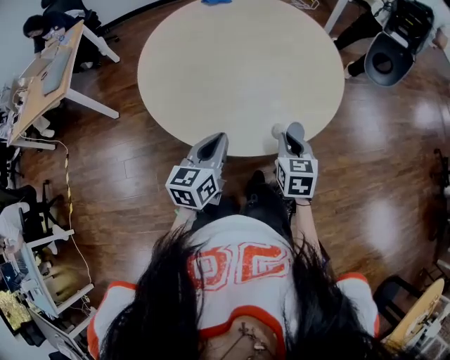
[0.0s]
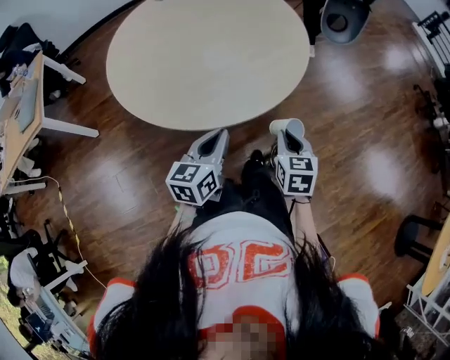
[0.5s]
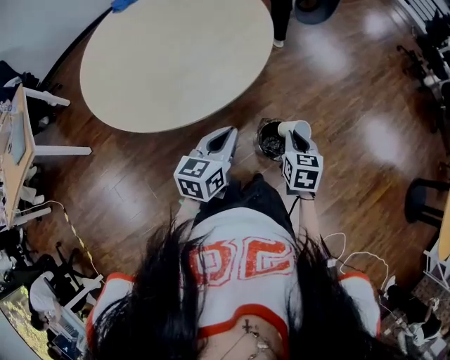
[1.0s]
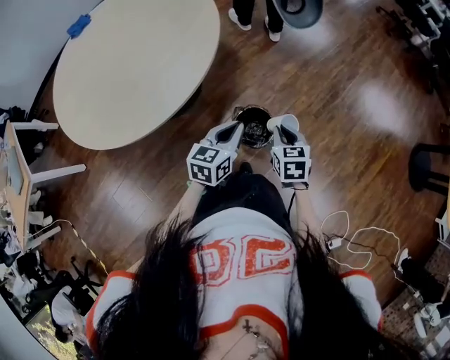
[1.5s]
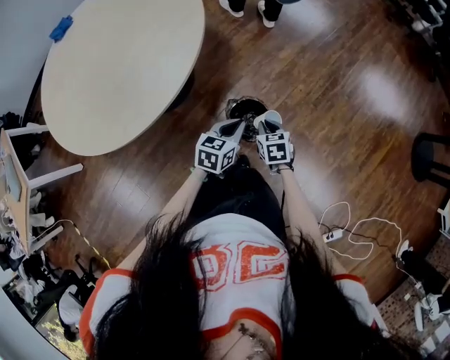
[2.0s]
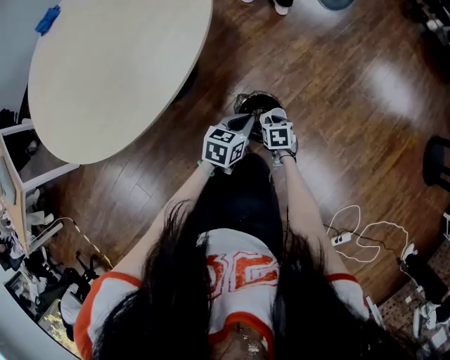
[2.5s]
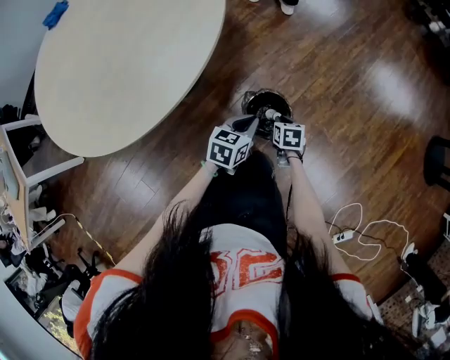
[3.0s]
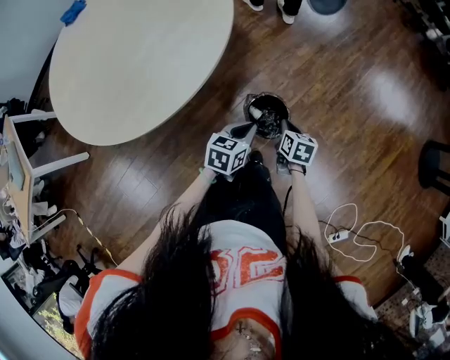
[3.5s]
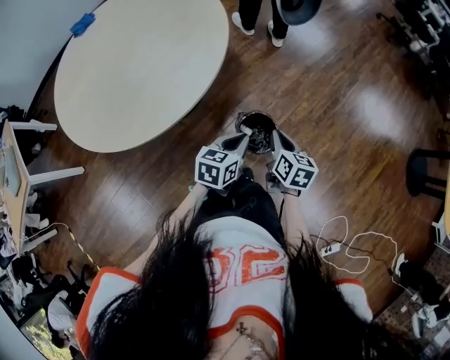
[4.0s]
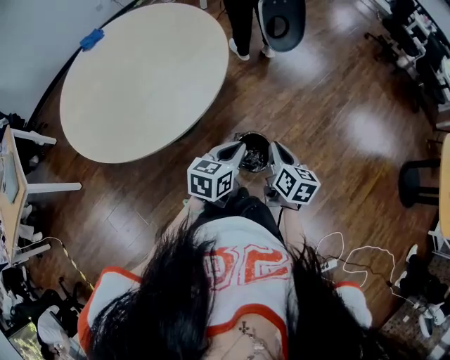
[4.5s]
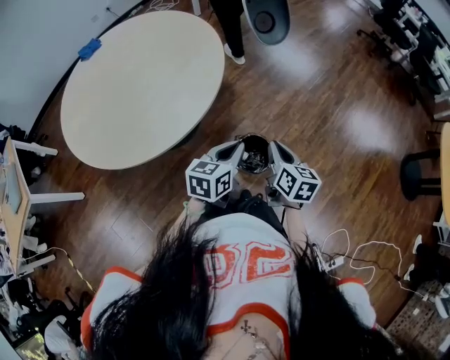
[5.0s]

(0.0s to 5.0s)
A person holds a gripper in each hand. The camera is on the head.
0.0s - 2.5s: The right gripper travels downward by some 35 cm, and rotates approximately 40 degrees; the left gripper changes place by roughly 40 cm, and turns by approximately 60 degrees.
2.5s - 5.0s: The left gripper heads upward, covering approximately 25 cm. The right gripper heads upward, covering approximately 35 cm, and angles its fingers upward, by approximately 40 degrees.

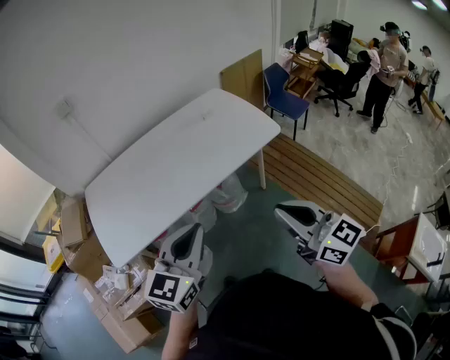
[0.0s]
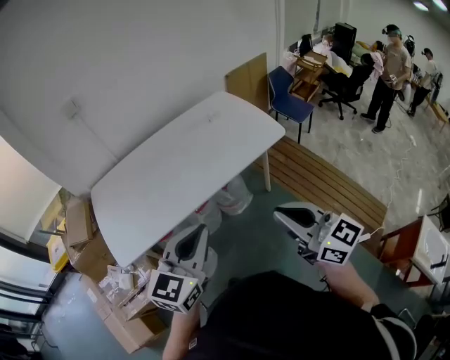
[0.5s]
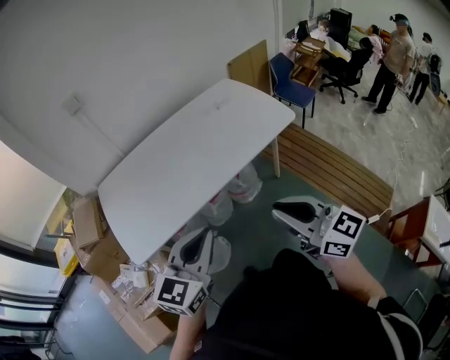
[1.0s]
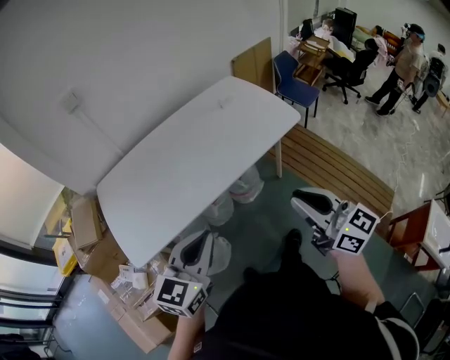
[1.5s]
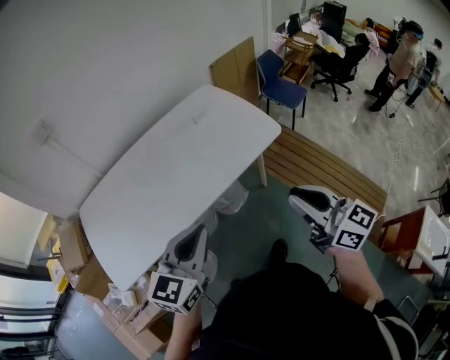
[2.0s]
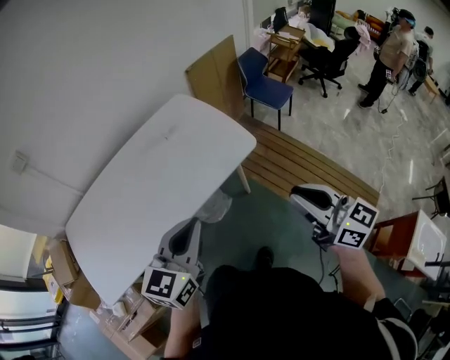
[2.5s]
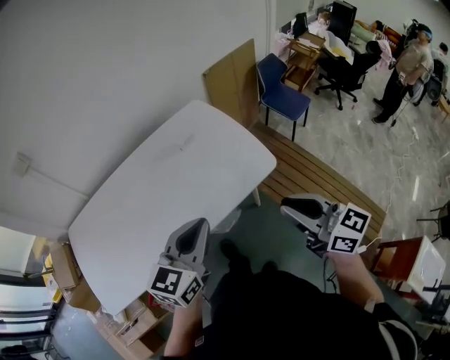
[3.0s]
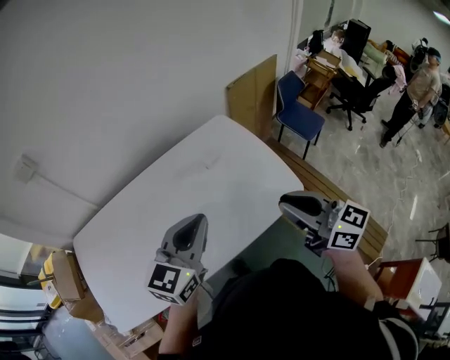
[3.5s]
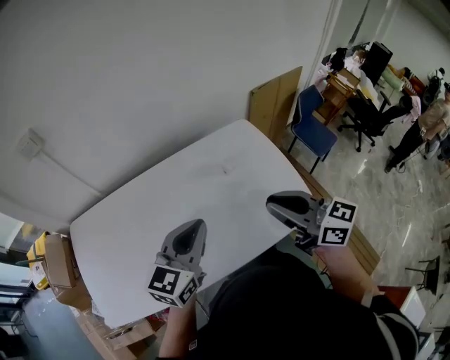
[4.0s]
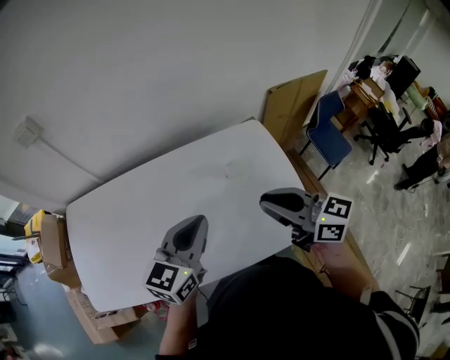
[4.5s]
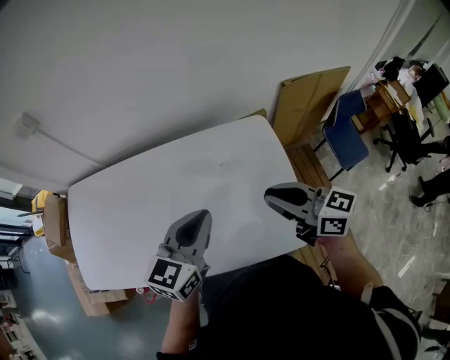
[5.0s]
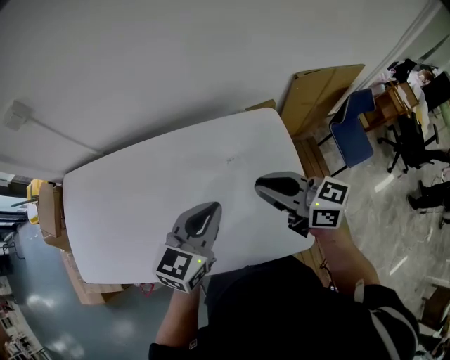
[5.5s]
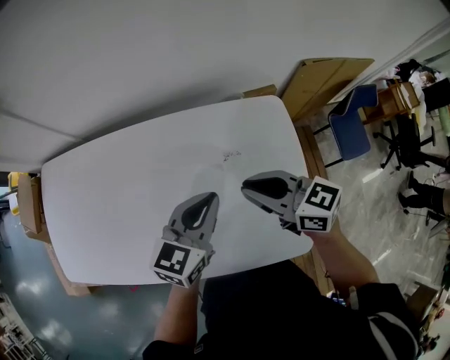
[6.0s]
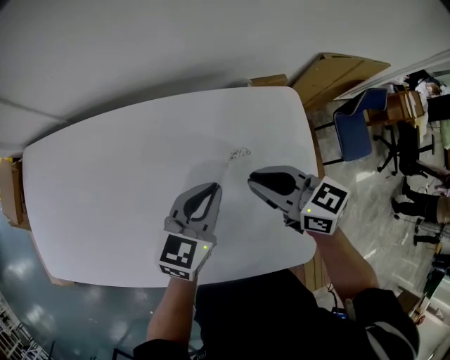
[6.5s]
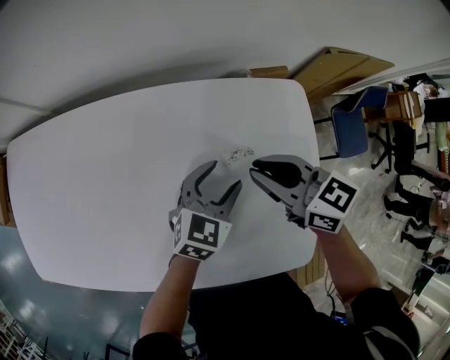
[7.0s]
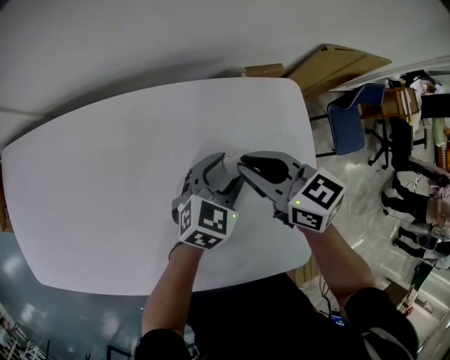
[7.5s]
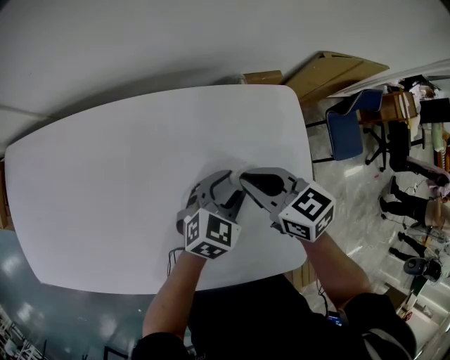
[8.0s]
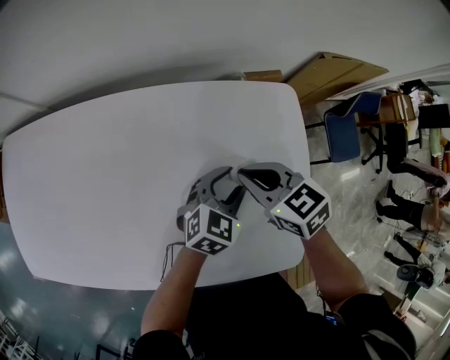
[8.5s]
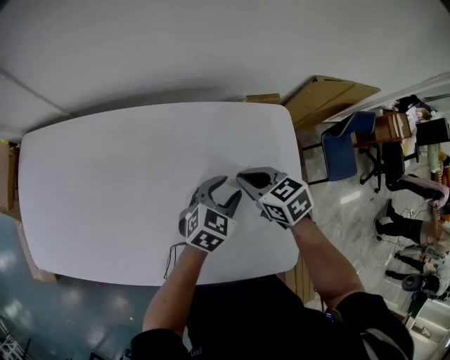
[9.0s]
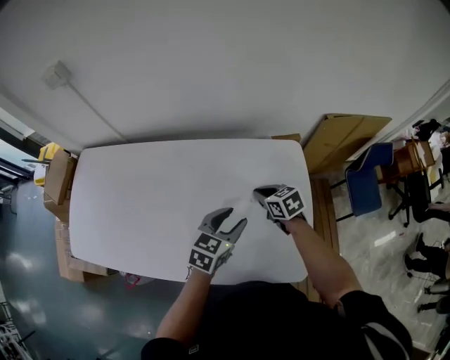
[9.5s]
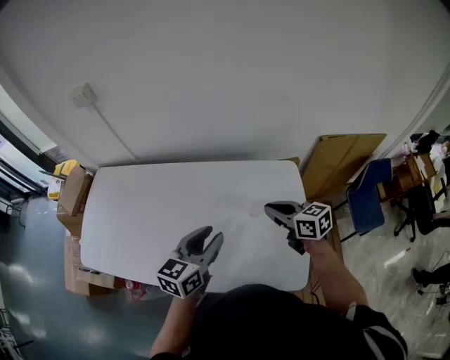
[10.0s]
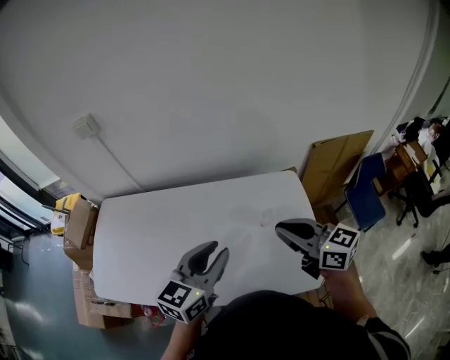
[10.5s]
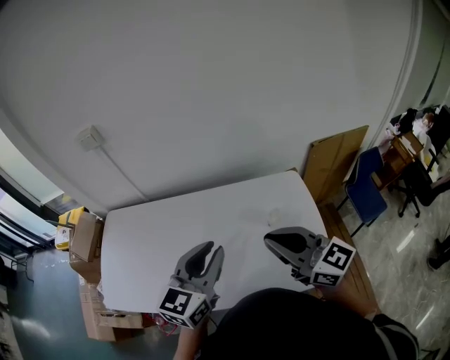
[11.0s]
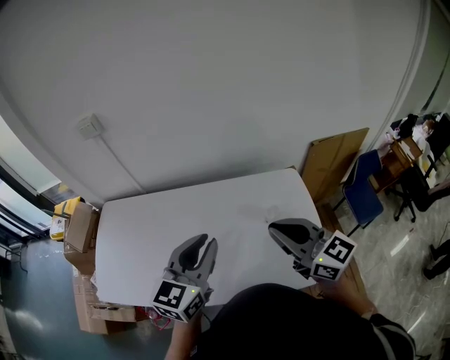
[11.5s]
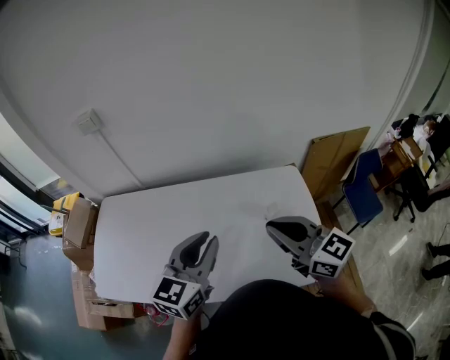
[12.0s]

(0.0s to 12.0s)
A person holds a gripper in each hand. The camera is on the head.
0.0s - 2.0s: The right gripper is displaced forward and to the right by approximately 15 cm, while the left gripper shifts approximately 10 cm forward.
2.0s - 4.0s: Both grippers travel together forward, roughly 35 cm. The right gripper swivels about 20 degrees.
4.0s - 6.0s: The right gripper is displaced forward and downward by approximately 25 cm, and turns by roughly 30 degrees, while the left gripper is displaced to the right, forward and downward by some 25 cm.
6.0s - 8.0s: The left gripper goes about 20 cm downward and to the right, rotates about 20 degrees, and opens, while the right gripper is displaced downward by some 10 cm.
8.0s - 10.0s: The right gripper moves upward, some 10 cm, while the left gripper heads upward, to the left and backward, covering roughly 30 cm, and changes its angle by roughly 30 degrees.
10.0s - 12.0s: The right gripper heads upward, to the left and backward, covering approximately 25 cm, and changes its angle by some 30 degrees, while the left gripper shifts about 15 cm upward and to the left.

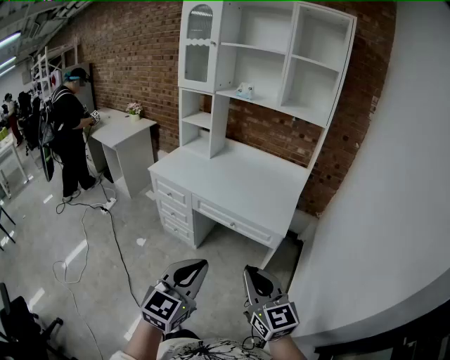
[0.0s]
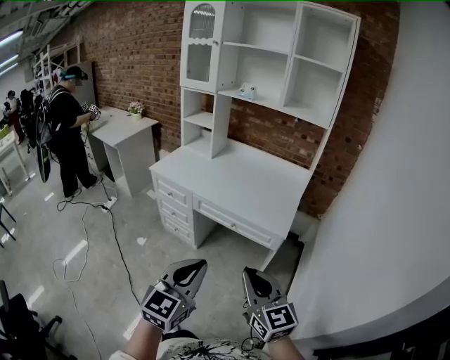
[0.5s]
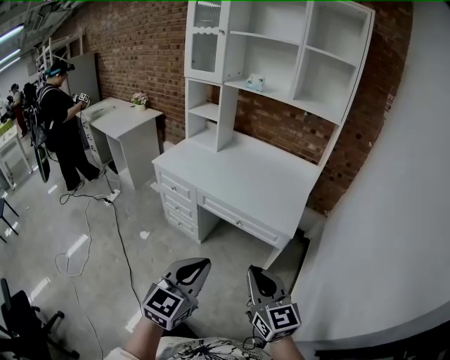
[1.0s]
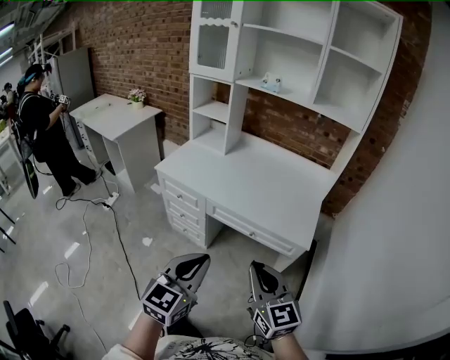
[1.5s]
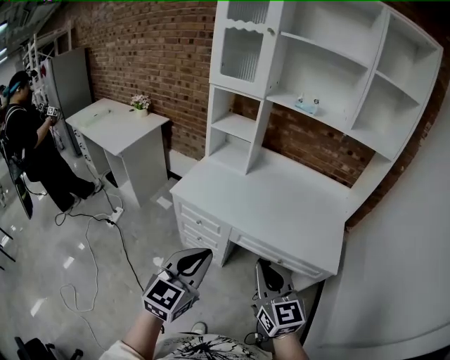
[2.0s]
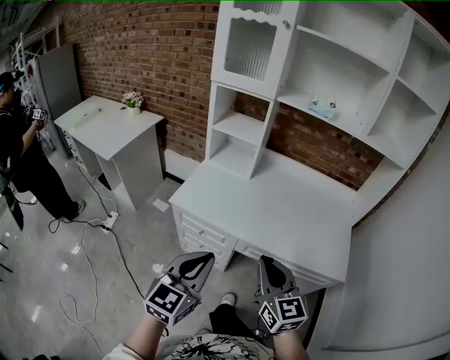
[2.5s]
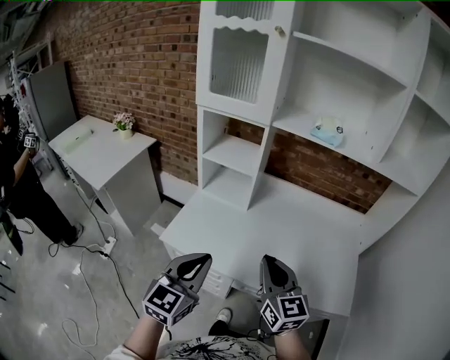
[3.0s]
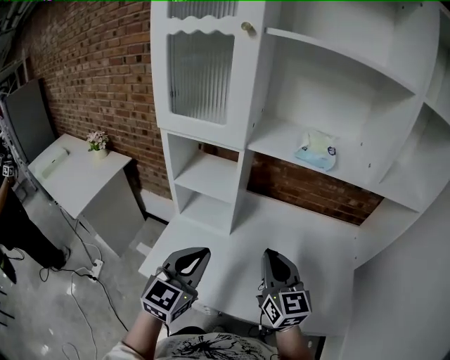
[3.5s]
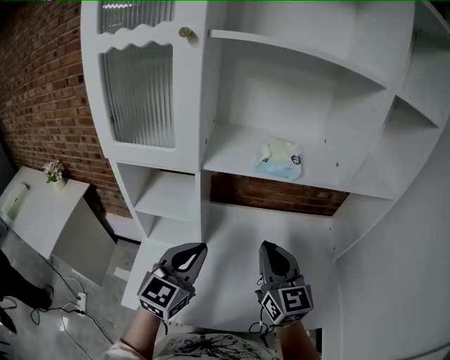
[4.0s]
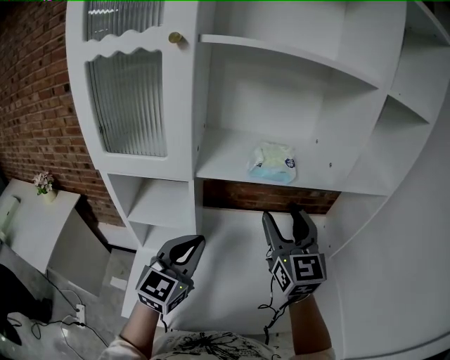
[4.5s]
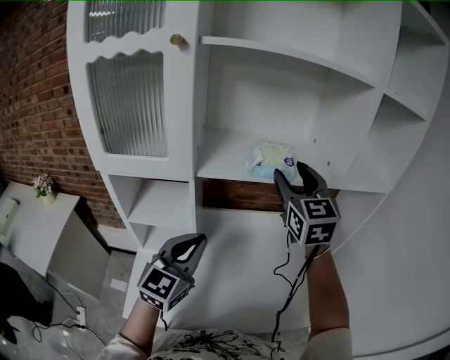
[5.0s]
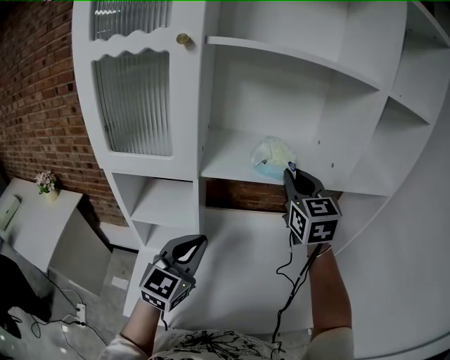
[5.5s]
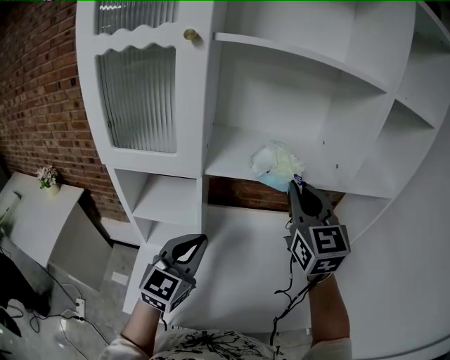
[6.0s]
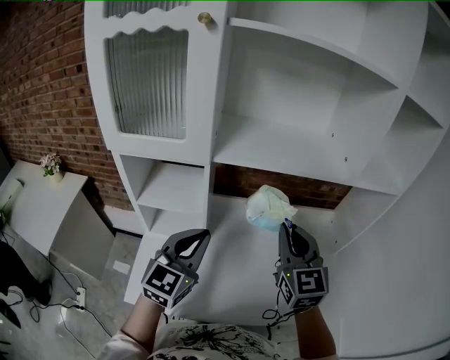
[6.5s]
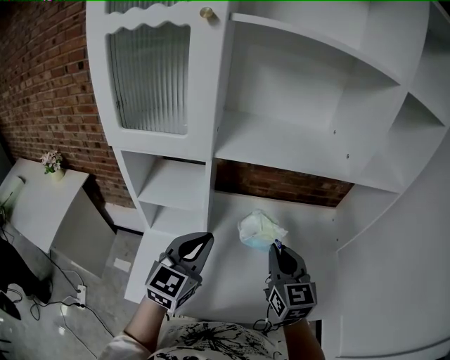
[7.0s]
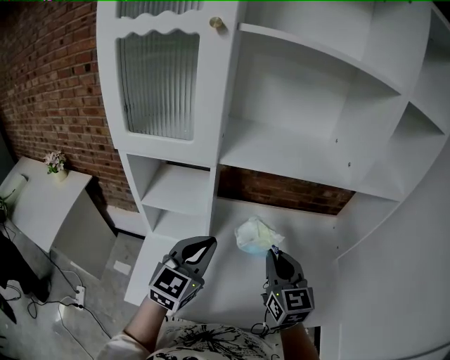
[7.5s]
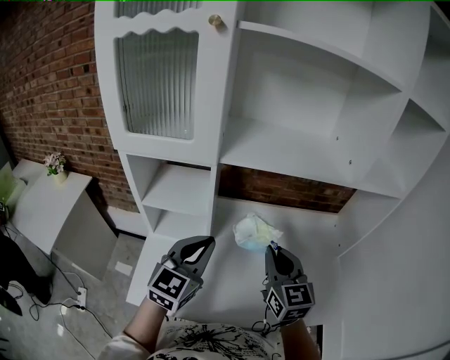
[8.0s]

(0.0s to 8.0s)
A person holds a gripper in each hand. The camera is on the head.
0.0s - 2.0s: Both grippers travel together forward and to the left, approximately 40 cm.
2.0s - 4.0s: The pair of grippers is taken forward, approximately 50 cm. The right gripper swivels some 20 degrees. Meanwhile the left gripper changes its angle by about 20 degrees.
4.0s - 6.0s: The right gripper heads upward and forward, covering approximately 15 cm, and opens, then closes once more.
6.0s - 8.0s: The right gripper travels downward and backward by about 20 cm.

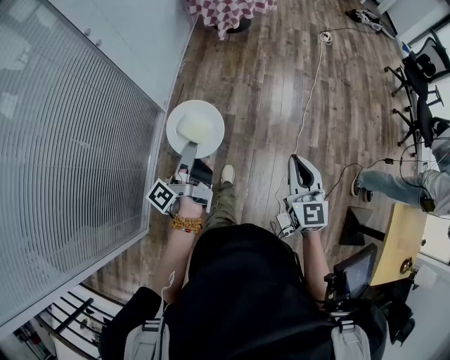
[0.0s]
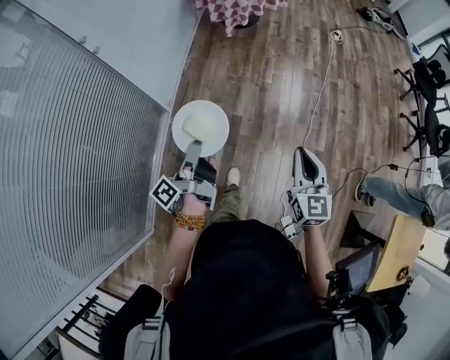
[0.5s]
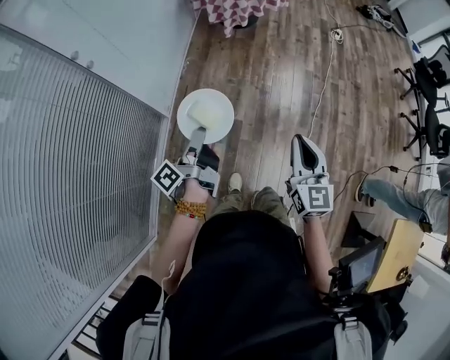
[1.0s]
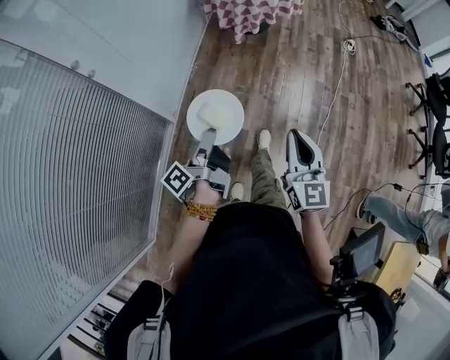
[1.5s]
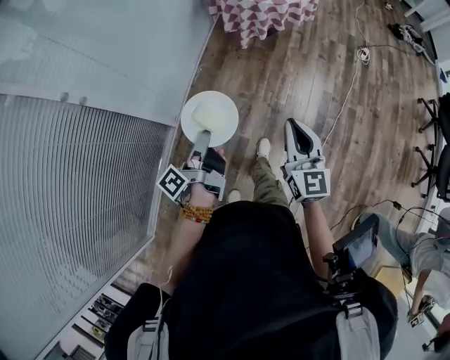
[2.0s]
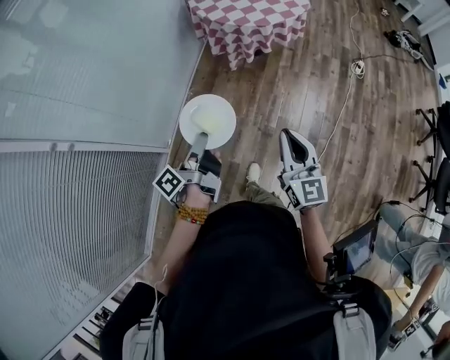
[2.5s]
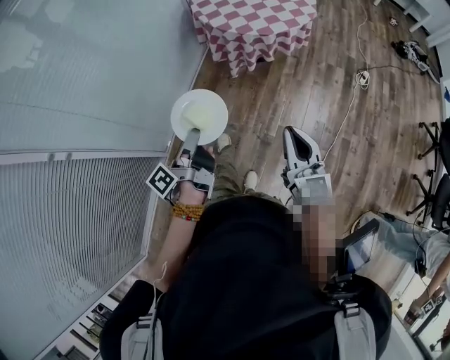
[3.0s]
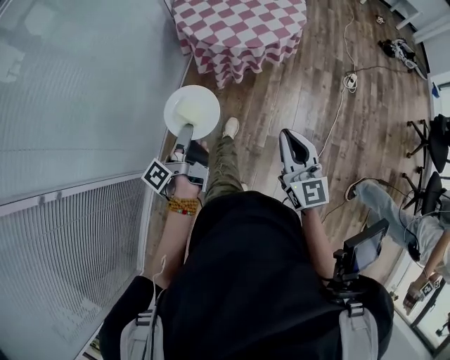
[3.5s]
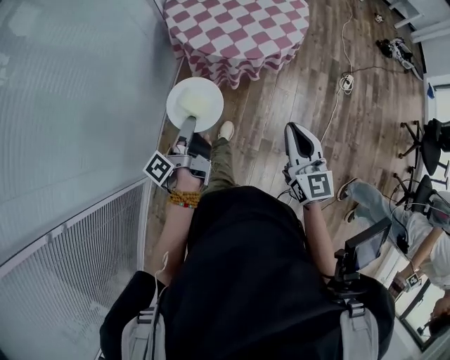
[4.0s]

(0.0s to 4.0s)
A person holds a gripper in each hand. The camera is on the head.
0.0s - 2.0s: The right gripper changes place by approximately 50 cm.
2.0s - 4.0s: The right gripper shifts by some 40 cm.
